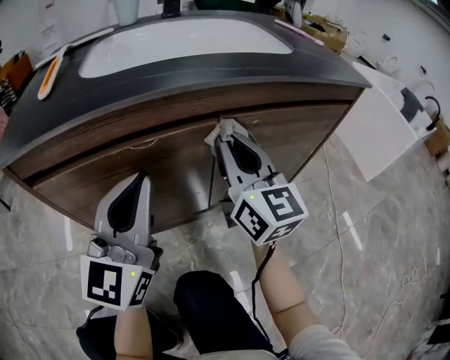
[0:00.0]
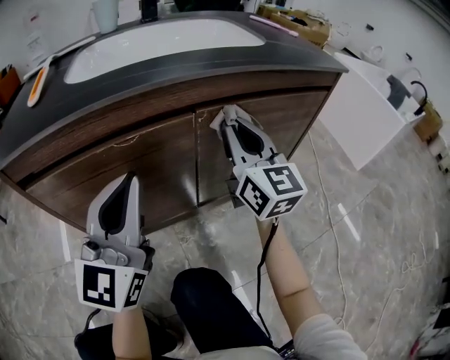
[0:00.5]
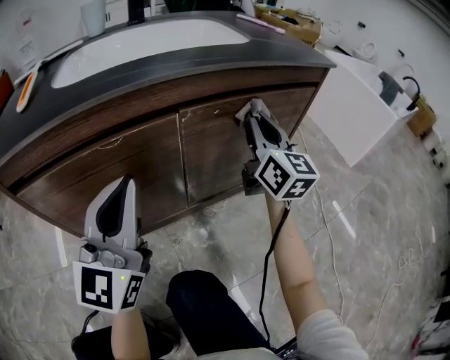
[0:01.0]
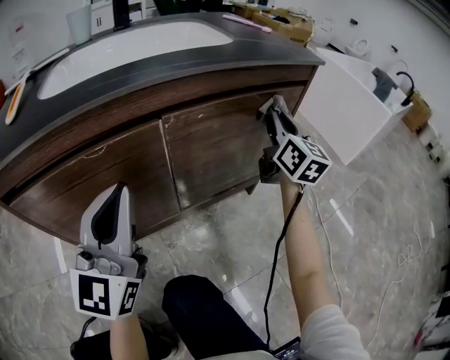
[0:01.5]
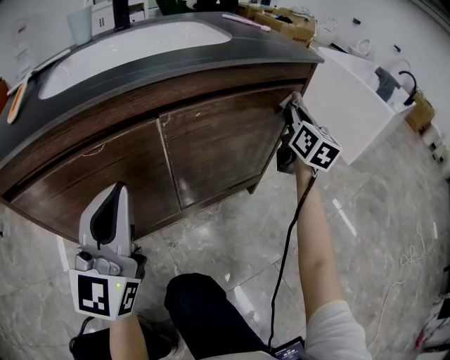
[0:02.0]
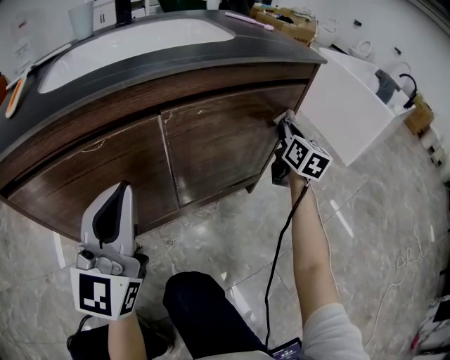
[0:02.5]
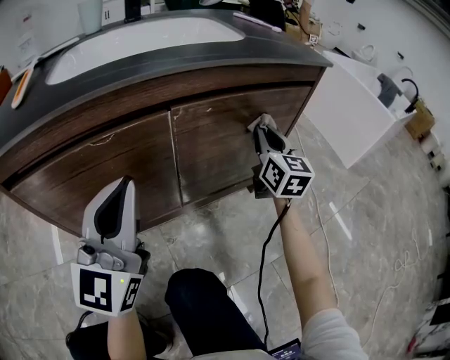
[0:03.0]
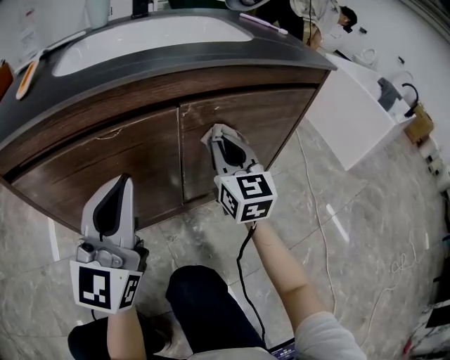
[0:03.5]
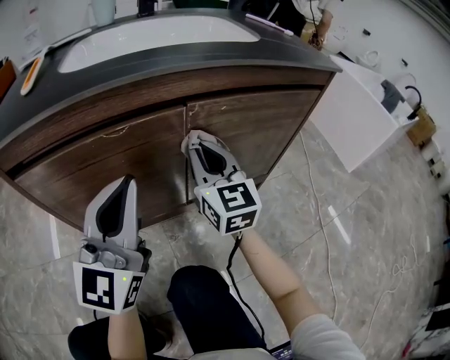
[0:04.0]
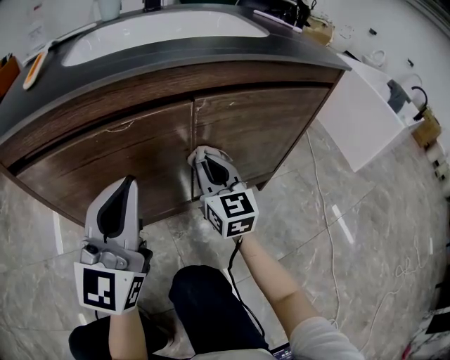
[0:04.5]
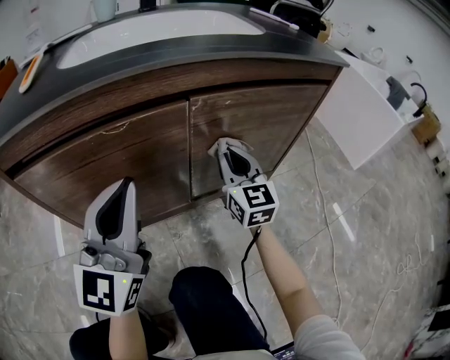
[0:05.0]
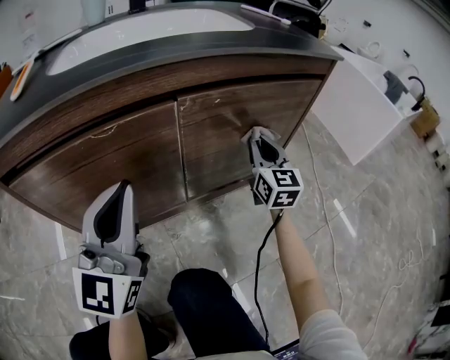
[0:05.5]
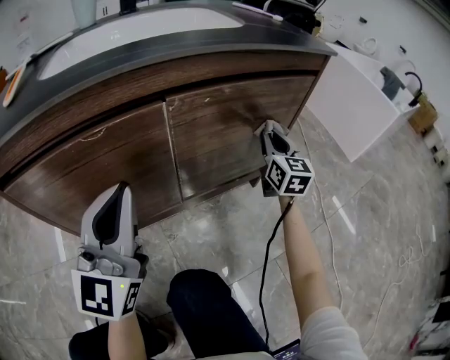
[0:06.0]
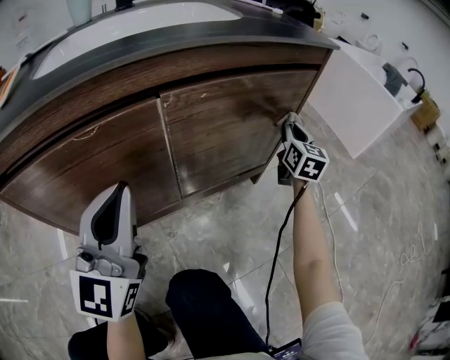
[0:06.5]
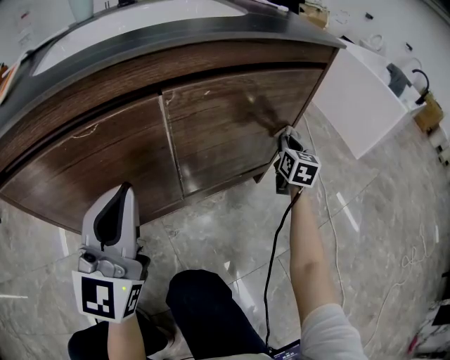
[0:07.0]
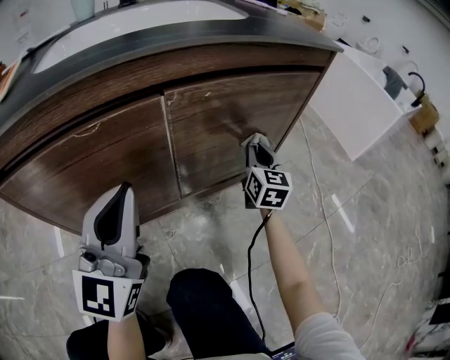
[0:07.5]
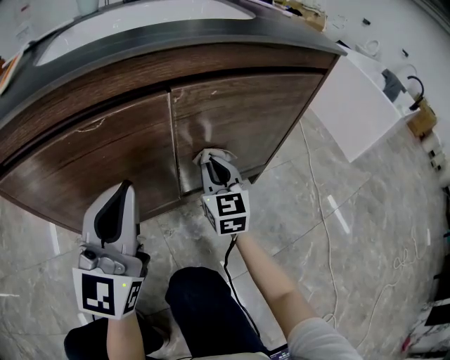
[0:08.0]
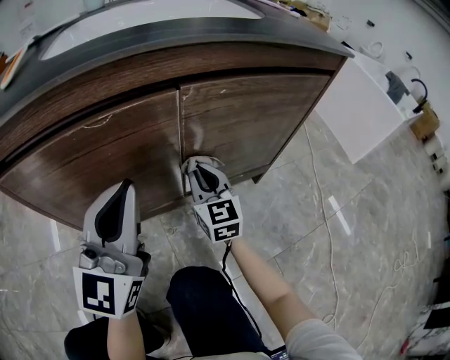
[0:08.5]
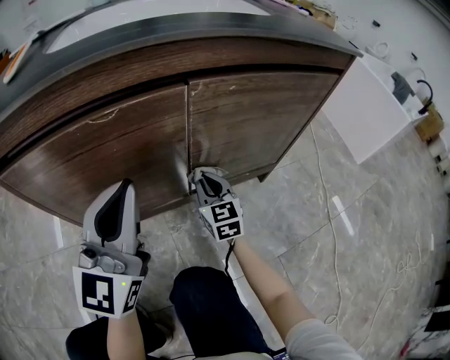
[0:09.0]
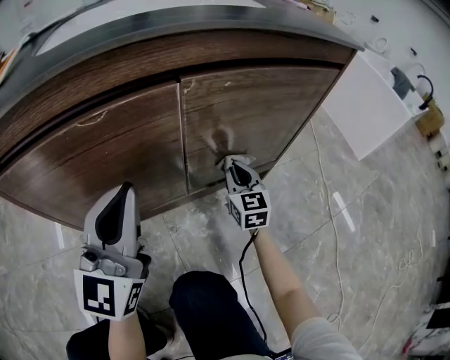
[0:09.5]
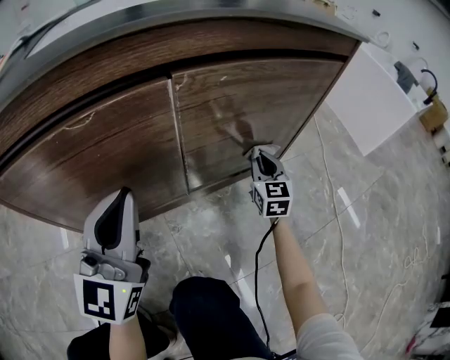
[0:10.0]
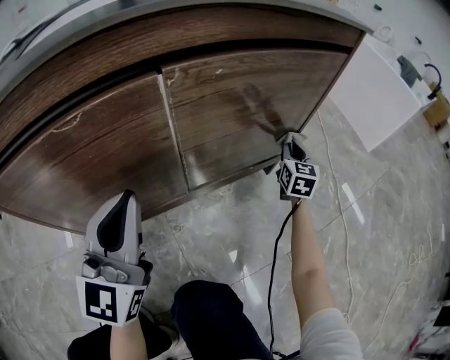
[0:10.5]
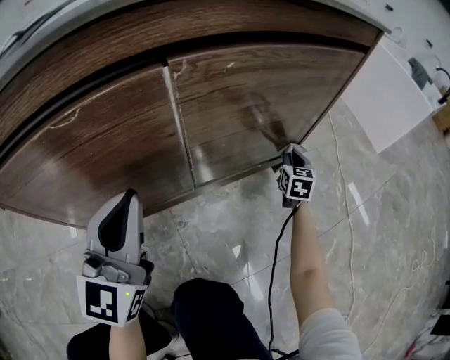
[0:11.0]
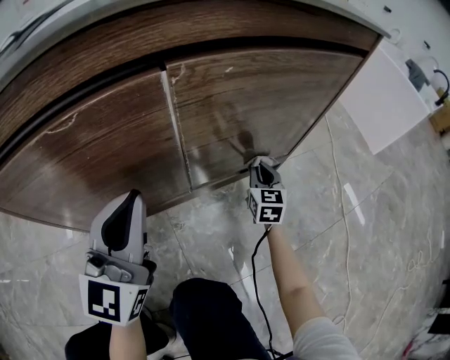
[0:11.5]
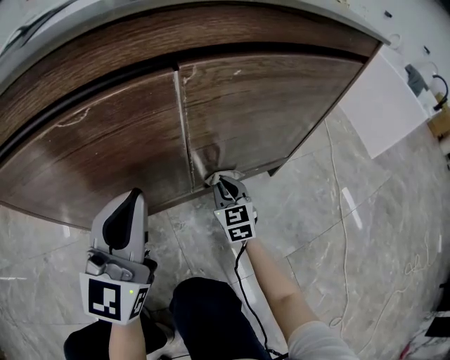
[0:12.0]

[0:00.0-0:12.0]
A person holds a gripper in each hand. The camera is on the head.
0:00.0 to 0:02.0: The left gripper is displaced to the right by about 5 cm. Meanwhile the right gripper shifts some 30 cm to the right, and changes its angle by about 30 degrees.
0:02.0 to 0:04.0: The right gripper moves to the left and backward, some 35 cm, and turns by approximately 30 degrees.
0:04.0 to 0:06.0: The right gripper is displaced to the right by some 25 cm, and swivels some 20 degrees.
0:06.0 to 0:08.0: The right gripper goes roughly 20 cm to the left and backward.
0:08.0 to 0:10.0: The right gripper moves to the right and downward, roughly 15 cm.
0:10.0 to 0:12.0: The right gripper heads to the left, downward and backward, covering roughly 15 cm.

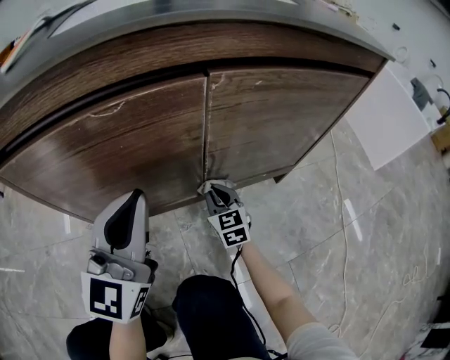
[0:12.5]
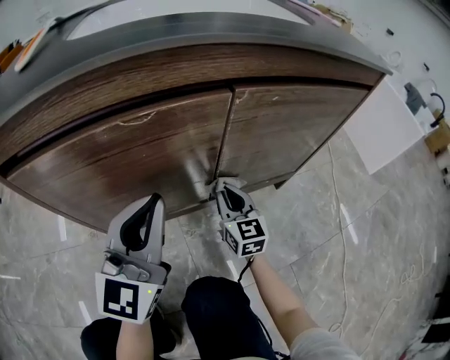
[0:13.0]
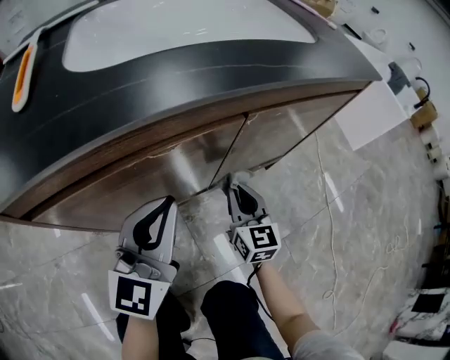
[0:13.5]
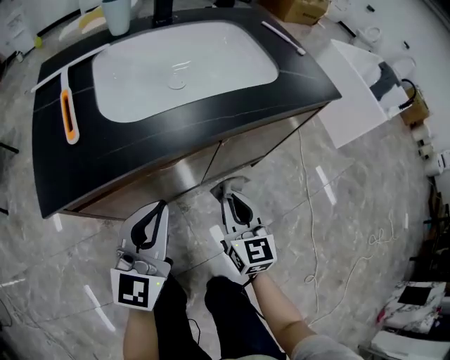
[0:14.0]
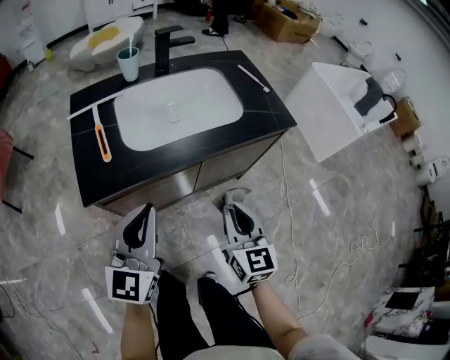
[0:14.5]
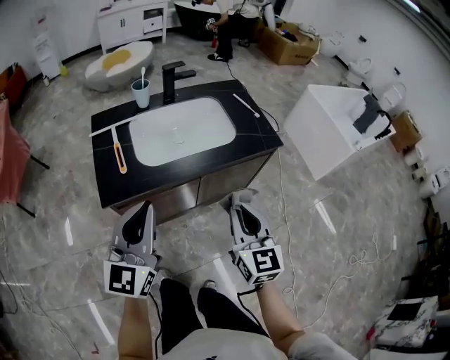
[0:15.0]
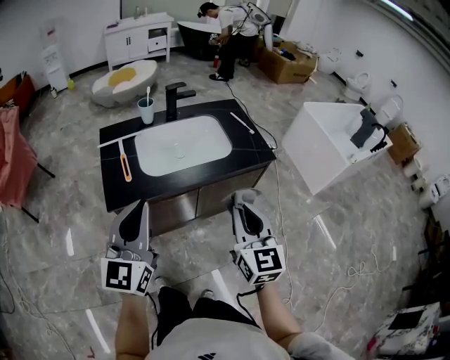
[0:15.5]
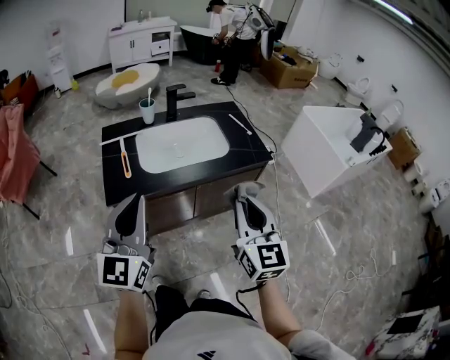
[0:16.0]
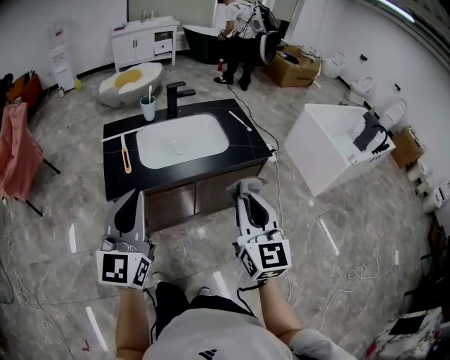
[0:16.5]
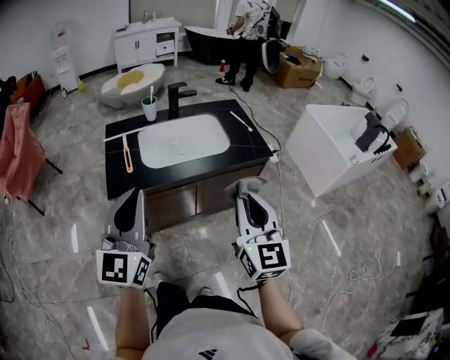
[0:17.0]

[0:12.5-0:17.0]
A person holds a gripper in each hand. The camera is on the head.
0:12.5 to 0:14.5: The left gripper shifts some 35 cm upward. Meanwhile the right gripper is displaced upward by about 50 cm, and swivels approximately 20 degrees.
0:14.5 to 0:17.0: The right gripper goes about 25 cm upward, while the left gripper travels upward and backward by some 25 cm.

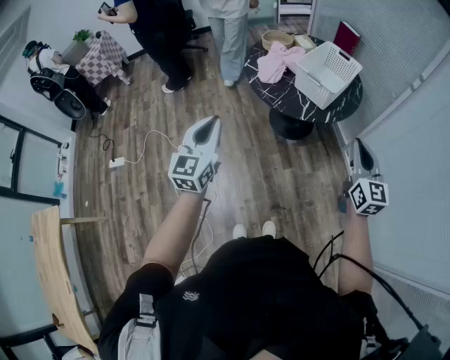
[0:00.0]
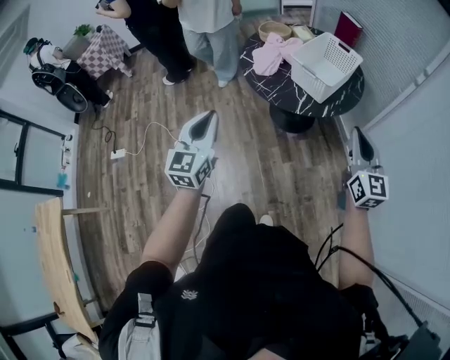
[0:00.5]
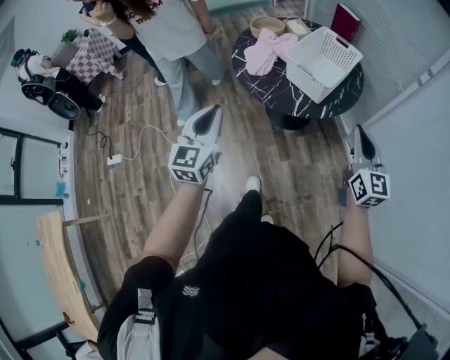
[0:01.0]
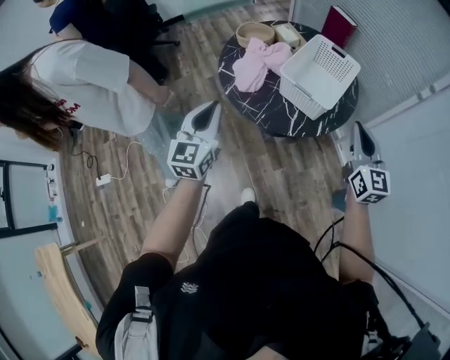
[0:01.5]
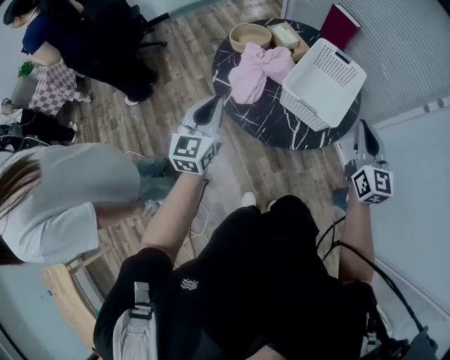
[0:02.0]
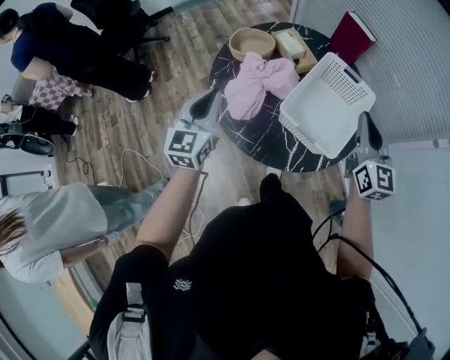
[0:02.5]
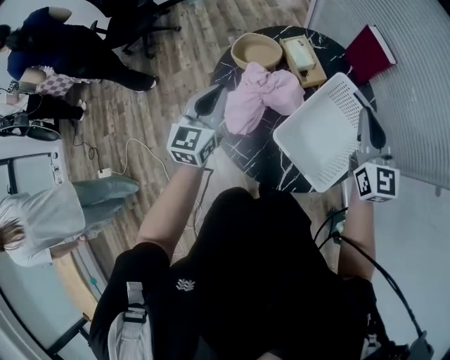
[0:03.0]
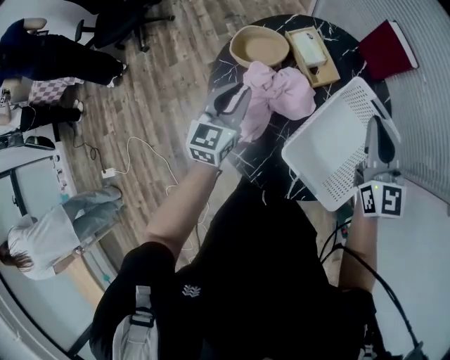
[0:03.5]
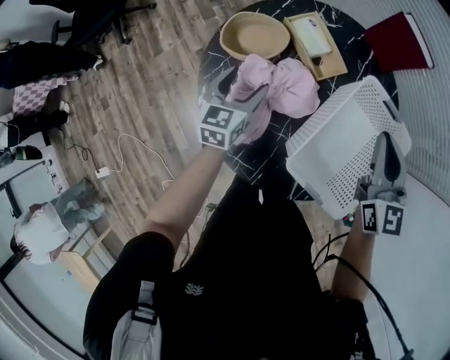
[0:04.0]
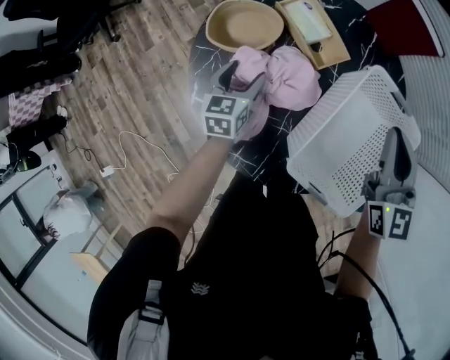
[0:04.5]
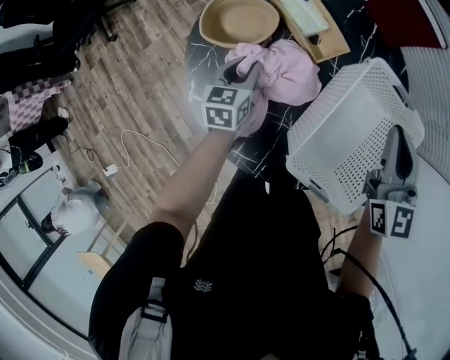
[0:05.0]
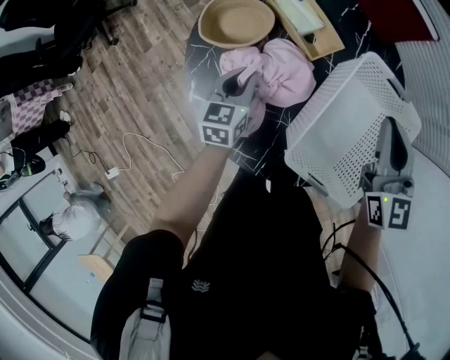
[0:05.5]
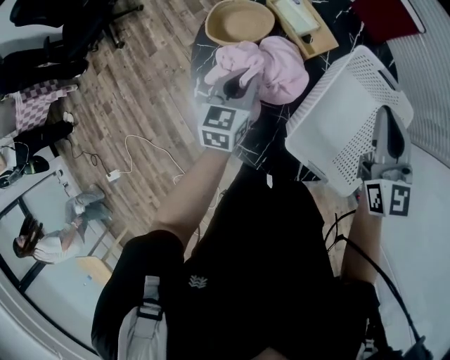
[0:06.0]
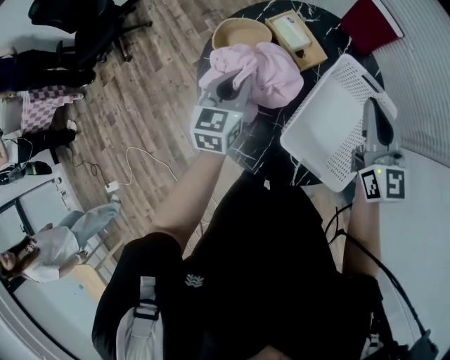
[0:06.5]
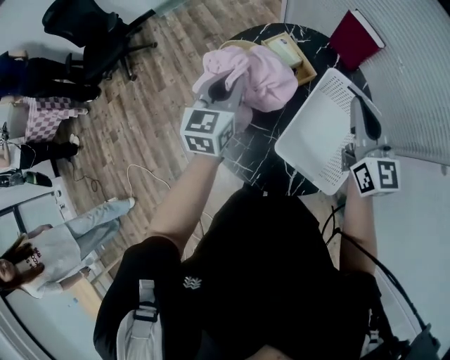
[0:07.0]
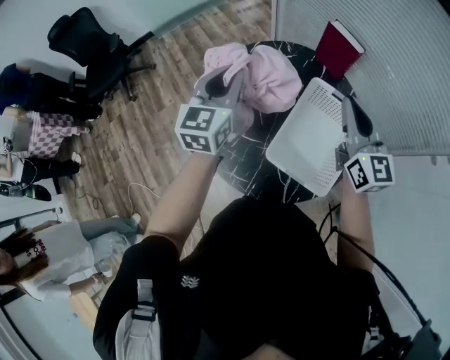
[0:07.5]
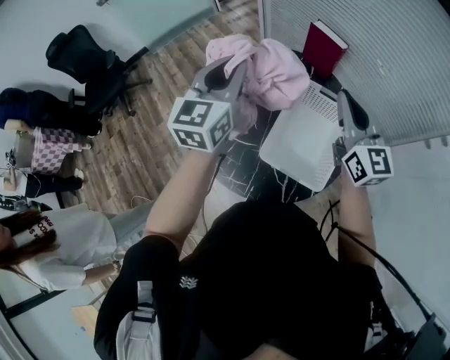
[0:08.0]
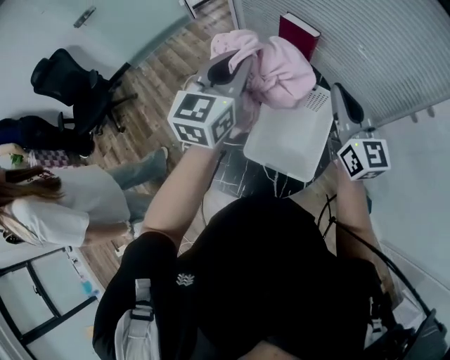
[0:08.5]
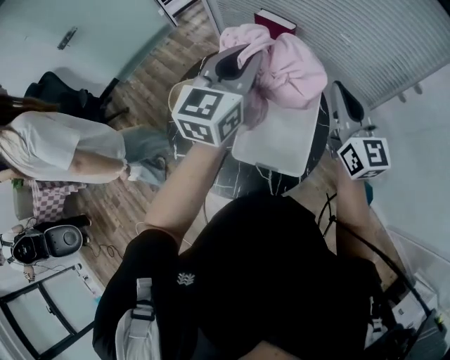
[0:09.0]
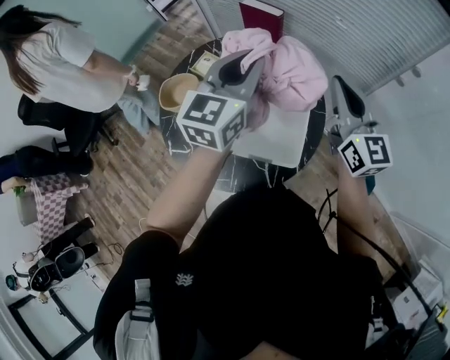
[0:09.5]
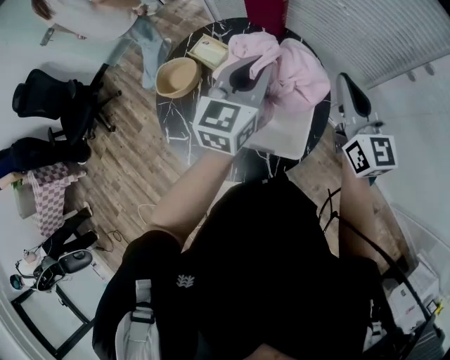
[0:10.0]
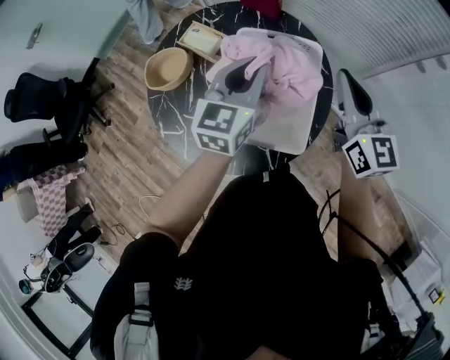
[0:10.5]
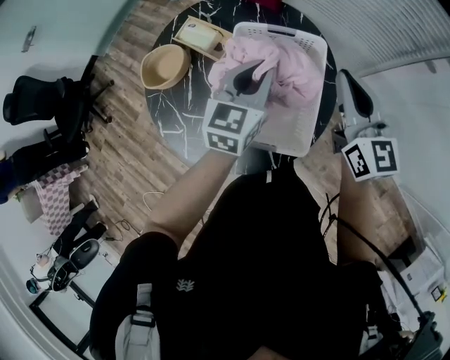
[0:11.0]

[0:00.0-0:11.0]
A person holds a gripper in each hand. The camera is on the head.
0:00.0 to 0:02.0: Both grippers move forward, approximately 35 cm.
0:02.0 to 0:03.5: The two grippers go some 30 cm forward.
0:03.5 to 0:05.5: The left gripper shifts approximately 15 cm downward, and opens and closes again, while the right gripper goes roughly 5 cm downward.
0:05.5 to 0:07.5: The right gripper heads upward, covering some 15 cm; the left gripper travels upward by about 35 cm, and changes its angle by approximately 30 degrees.
0:07.5 to 0:09.0: The left gripper heads to the right, covering about 25 cm, and rotates some 30 degrees, while the right gripper moves to the right, some 15 cm.
0:09.0 to 0:11.0: The right gripper heads downward, covering approximately 5 cm; the left gripper moves downward, about 20 cm.
